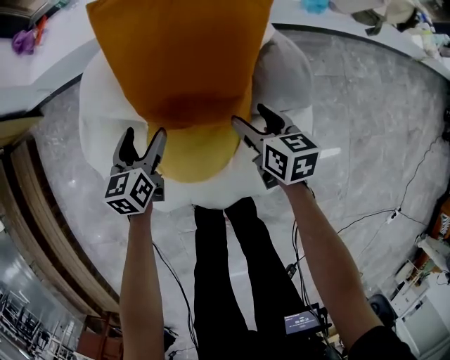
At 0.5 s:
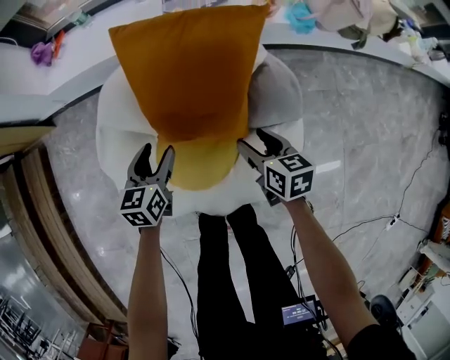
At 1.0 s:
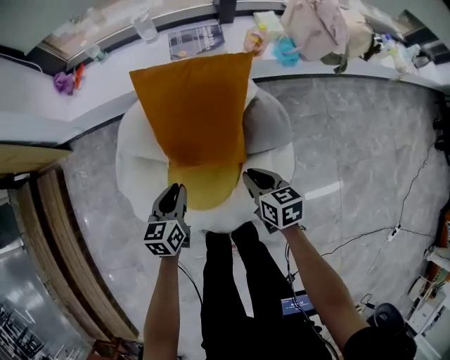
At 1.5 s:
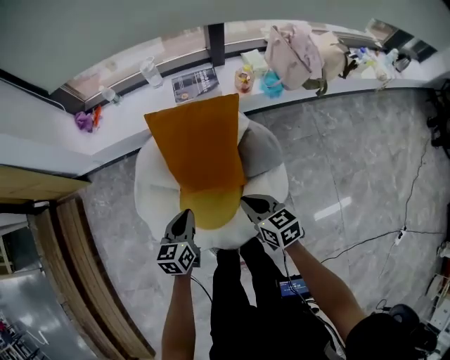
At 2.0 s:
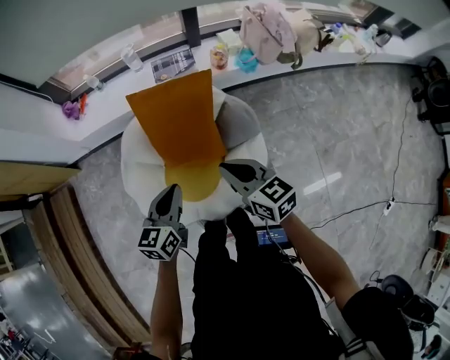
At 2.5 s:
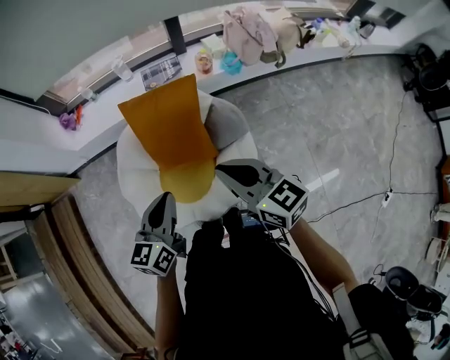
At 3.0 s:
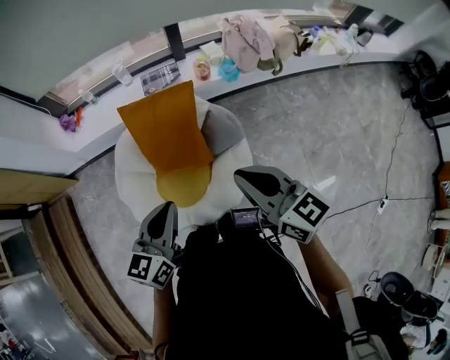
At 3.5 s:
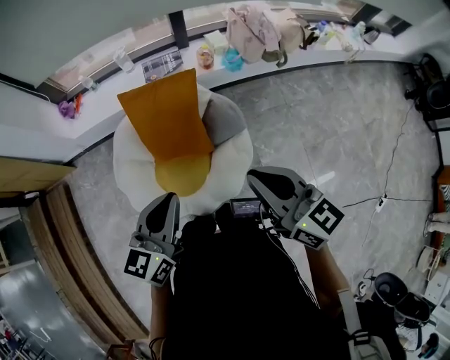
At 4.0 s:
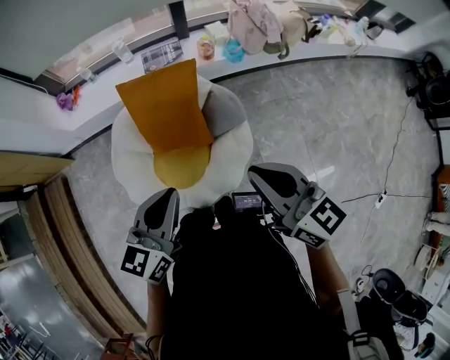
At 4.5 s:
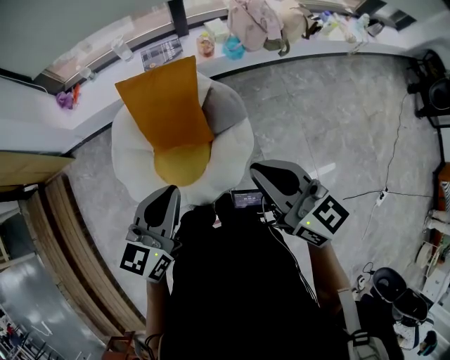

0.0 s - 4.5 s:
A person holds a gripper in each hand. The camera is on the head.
0.0 s - 2.0 s: Both grippers travel together upward, roughly 40 cm. The right gripper swivels roughly 20 degrees, and closes up, while the left gripper closes.
2.0 s - 4.5 s: The left gripper heads upward, backward and to the right, covering some 20 cm. The right gripper is displaced upward, to the right and backward by roughly 20 cm.

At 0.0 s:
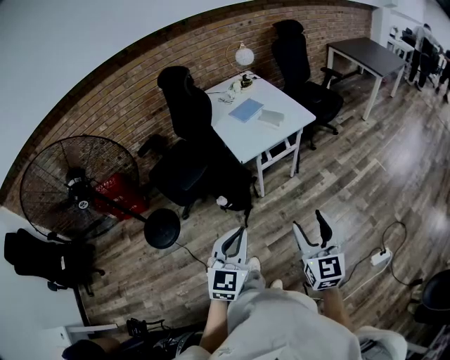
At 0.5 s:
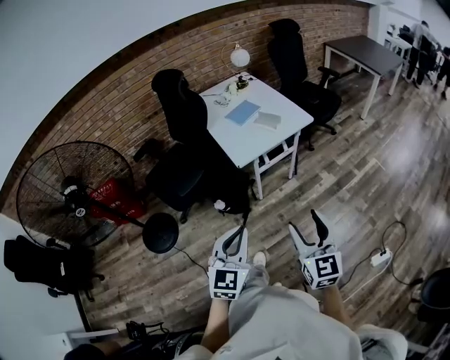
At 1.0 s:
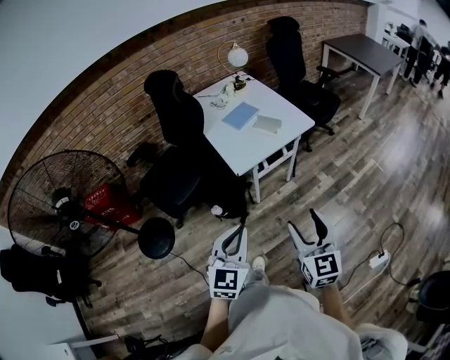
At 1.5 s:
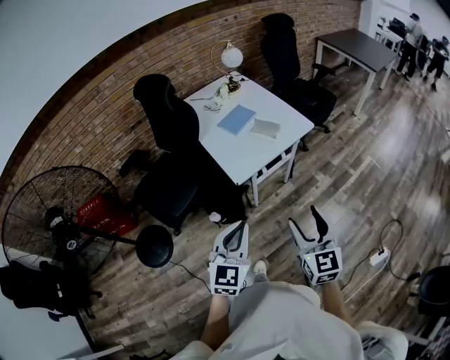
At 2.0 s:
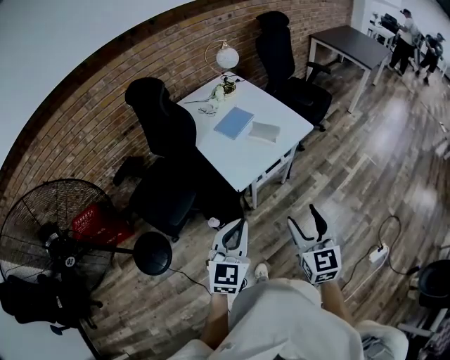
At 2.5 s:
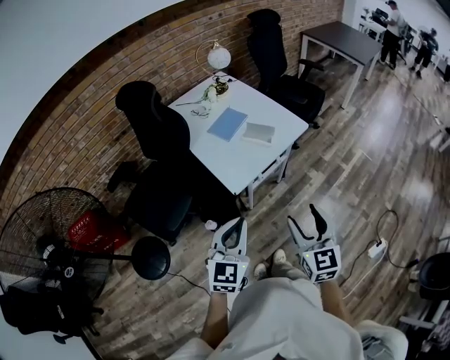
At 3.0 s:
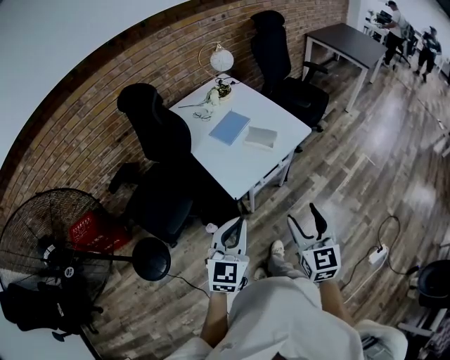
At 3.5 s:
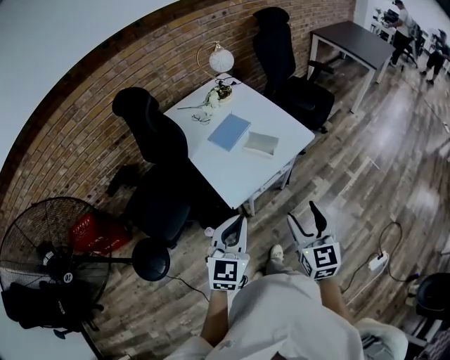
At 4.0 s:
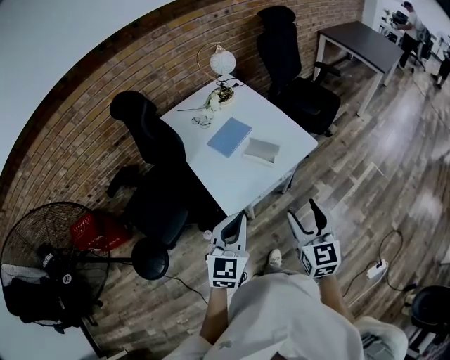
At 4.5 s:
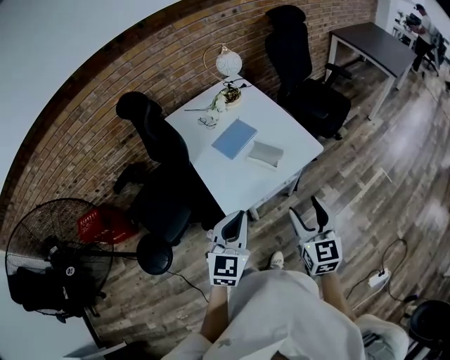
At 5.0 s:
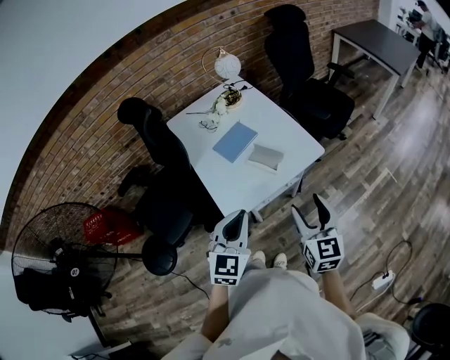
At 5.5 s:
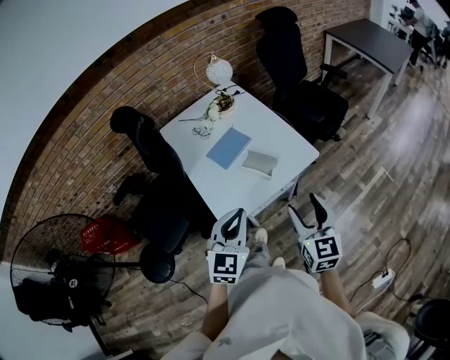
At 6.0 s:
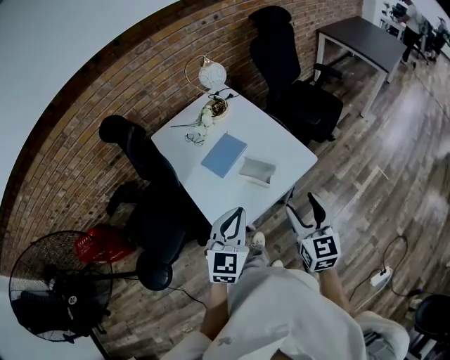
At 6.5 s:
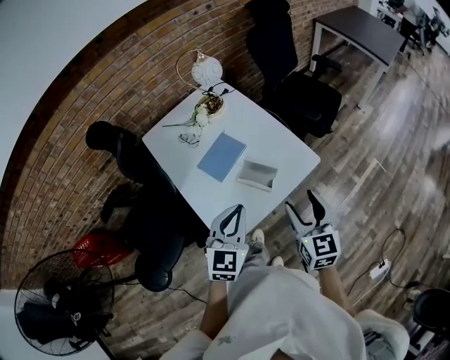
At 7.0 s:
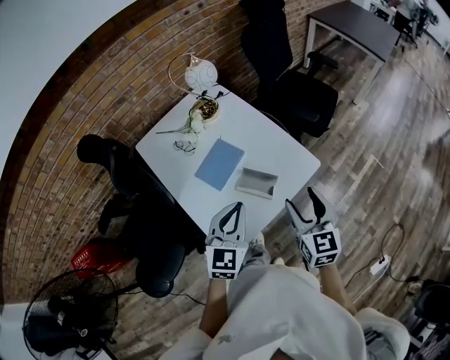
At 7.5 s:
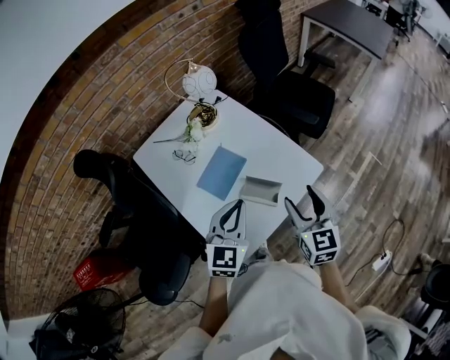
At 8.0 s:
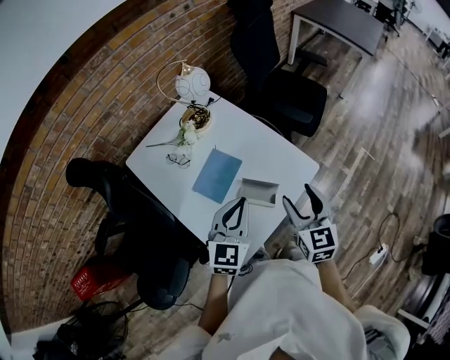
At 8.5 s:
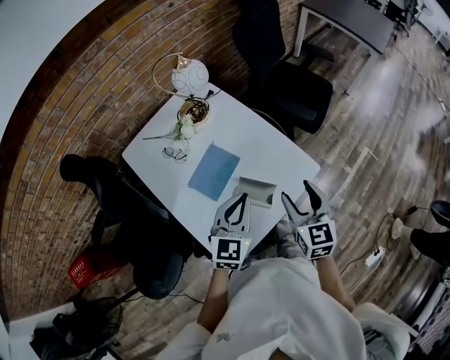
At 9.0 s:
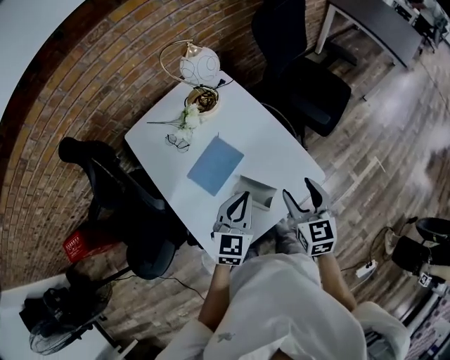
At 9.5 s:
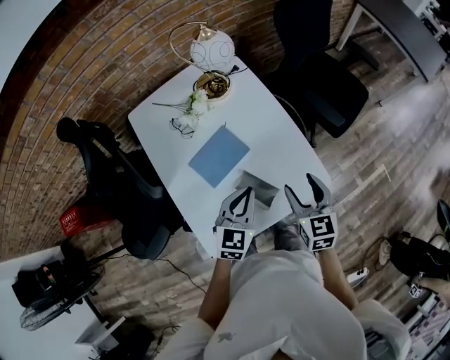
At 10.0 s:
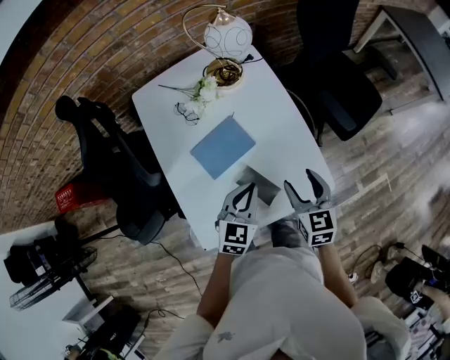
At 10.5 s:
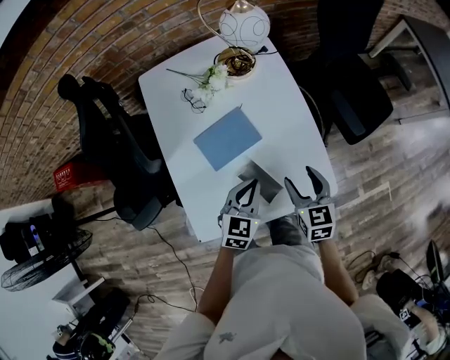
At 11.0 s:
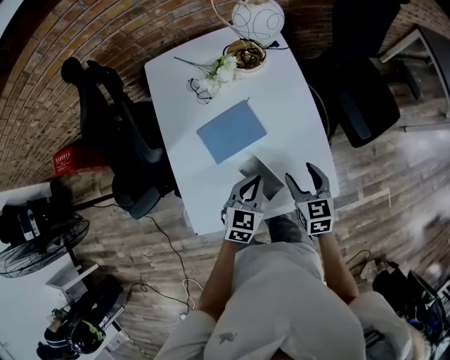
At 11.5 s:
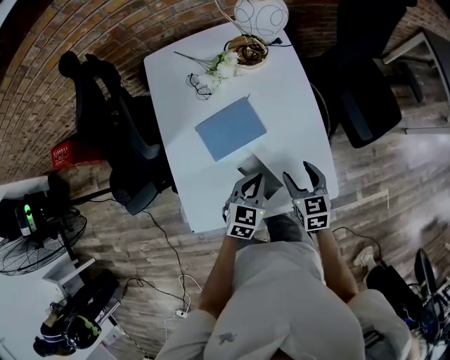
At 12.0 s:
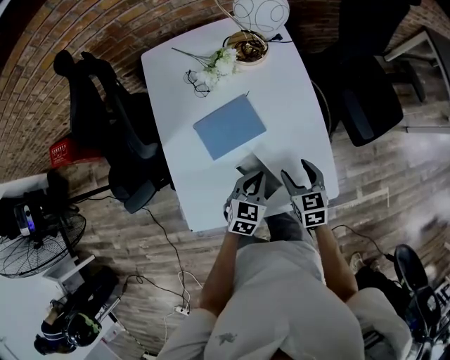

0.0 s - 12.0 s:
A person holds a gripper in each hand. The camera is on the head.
0.0 s - 2.0 s: Both grippers travel together forward, roughly 25 cm.
2.0 s - 4.0 s: The two grippers go some 15 cm forward.
4.0 s - 6.0 s: Both grippers travel together forward, about 15 cm.
6.0 s - 8.0 s: The left gripper shifts approximately 20 cm forward. Meanwhile the right gripper moves forward and to the left, roughly 15 cm.
8.0 s - 10.0 s: The grippers both shift downward and forward by roughly 15 cm. The right gripper changes its angle by roughly 30 degrees. Meanwhile the left gripper turns by roughly 20 degrees.
10.0 s - 12.0 s: Both grippers move downward, some 10 cm.

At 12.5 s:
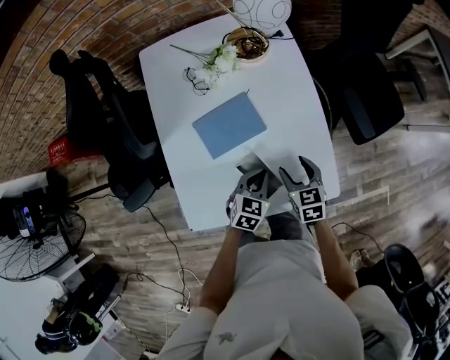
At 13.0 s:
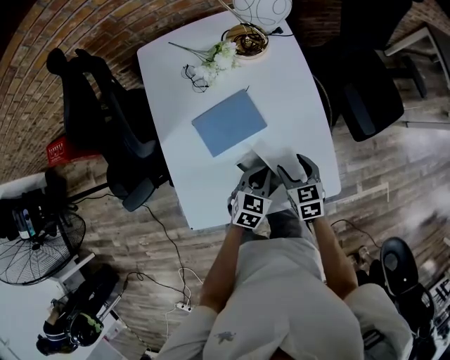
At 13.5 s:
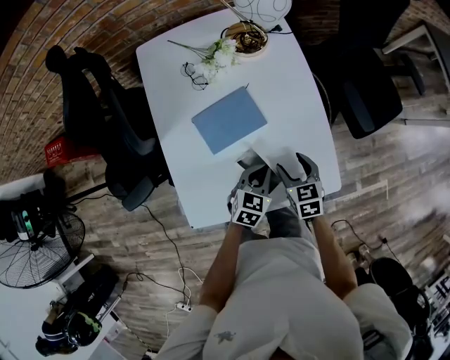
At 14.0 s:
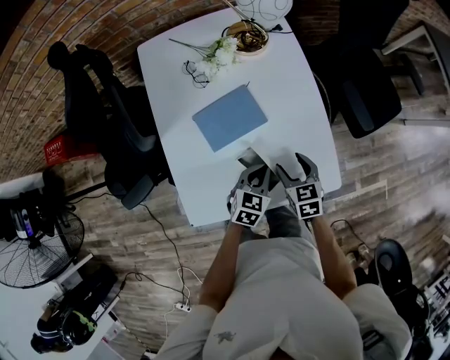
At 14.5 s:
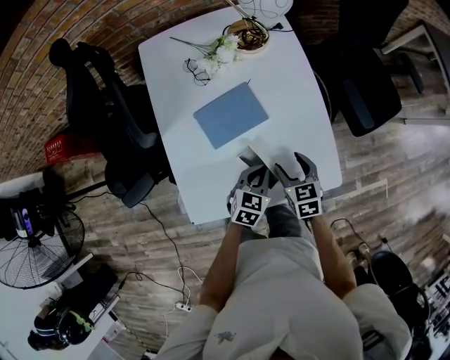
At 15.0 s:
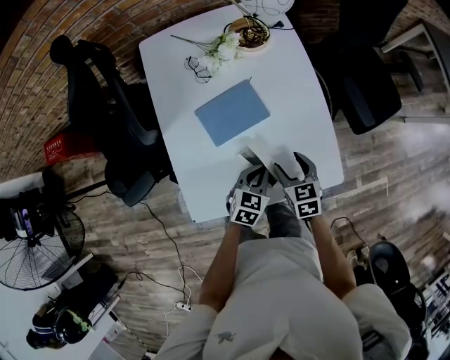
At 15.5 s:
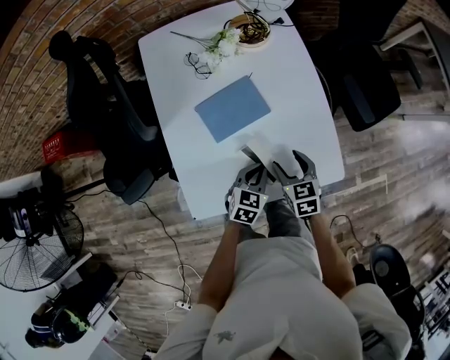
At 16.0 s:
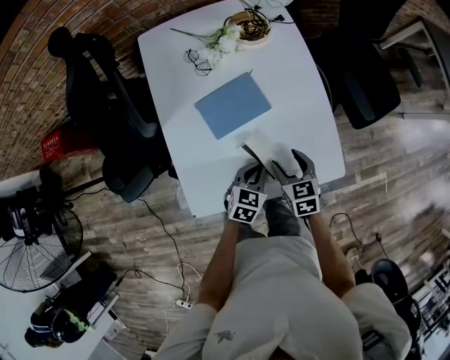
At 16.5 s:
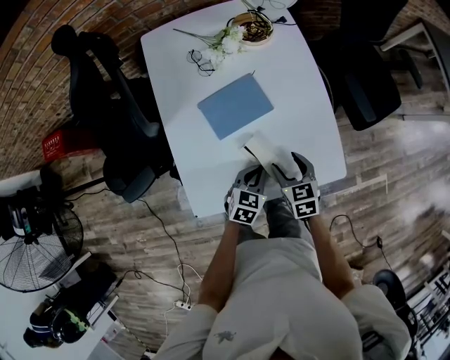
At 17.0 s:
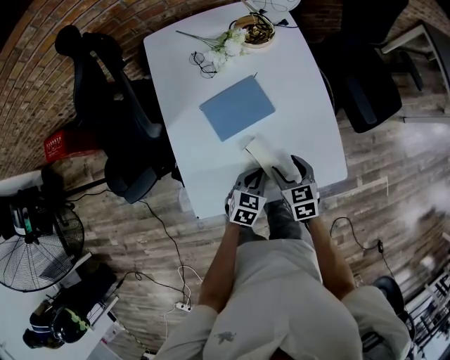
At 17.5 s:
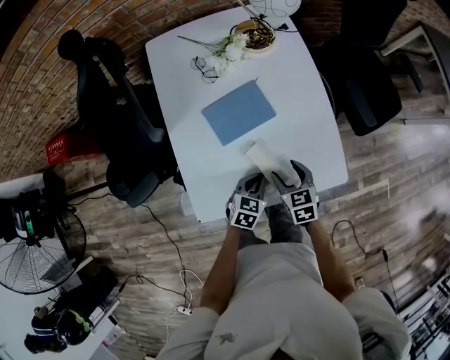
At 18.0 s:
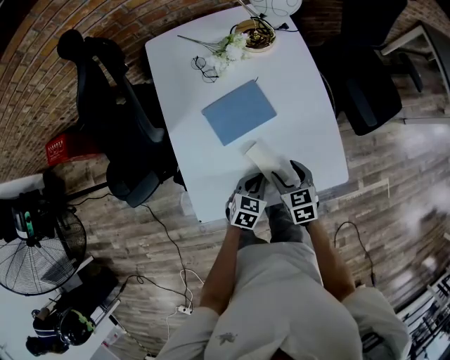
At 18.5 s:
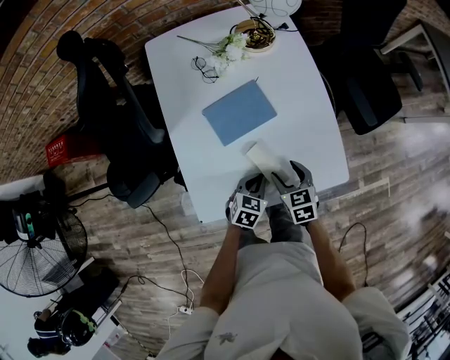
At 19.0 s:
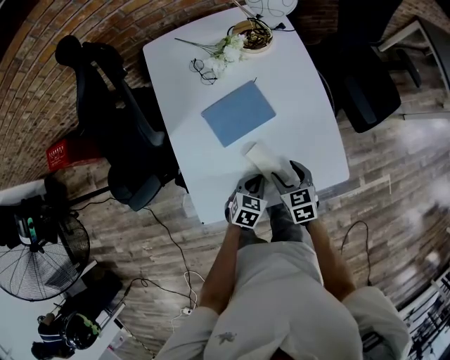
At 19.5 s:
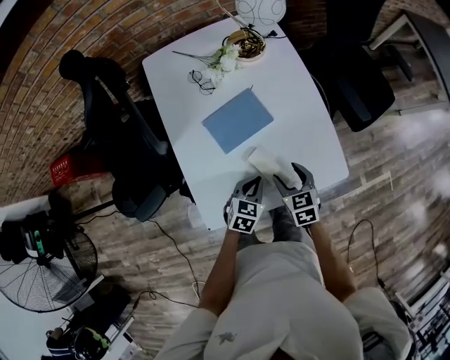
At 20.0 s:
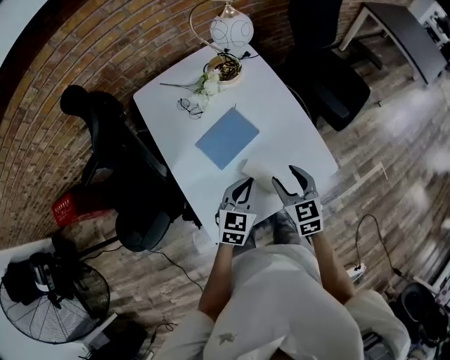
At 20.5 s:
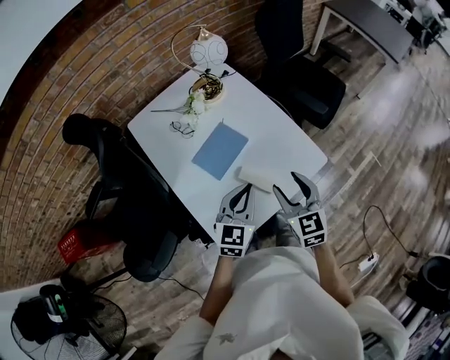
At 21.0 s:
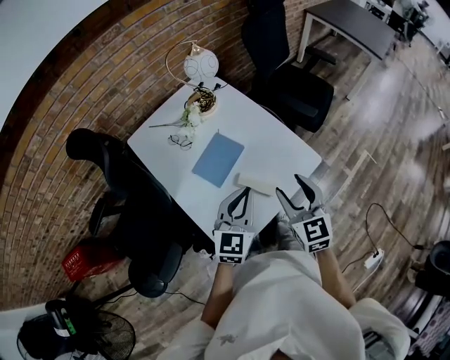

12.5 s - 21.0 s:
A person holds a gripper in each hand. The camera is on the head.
12.5 s - 14.5 s: There are only small adjustments of the grippers.
14.5 s - 16.5 s: The left gripper moves approximately 5 cm.
16.5 s - 19.0 s: The grippers make only small movements.
19.0 s - 21.0 s: The grippers both shift upward by about 25 cm. The right gripper swivels some 40 degrees. The left gripper tips its fingers upward by roughly 40 degrees.

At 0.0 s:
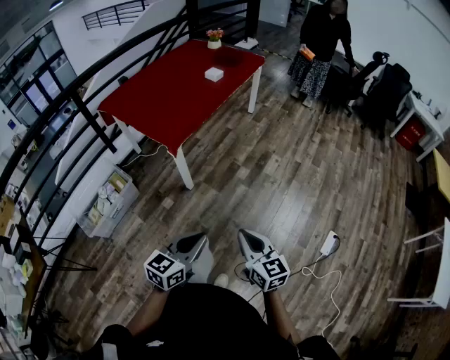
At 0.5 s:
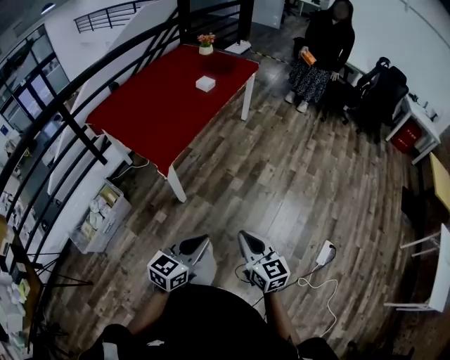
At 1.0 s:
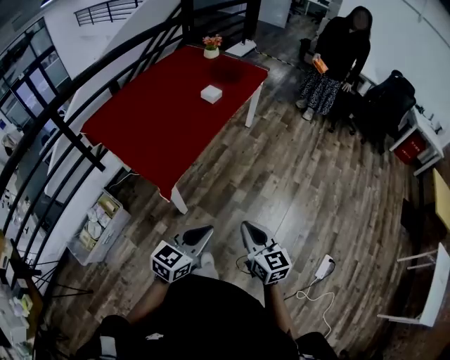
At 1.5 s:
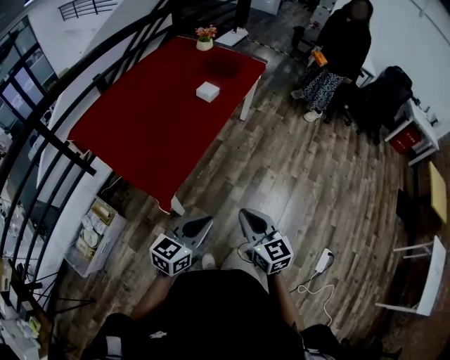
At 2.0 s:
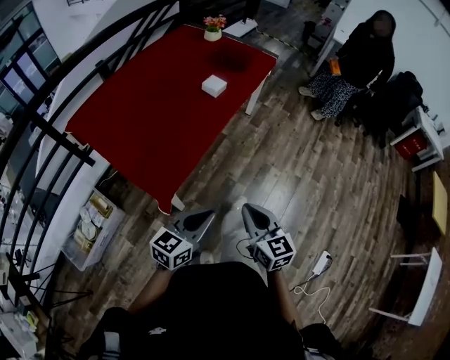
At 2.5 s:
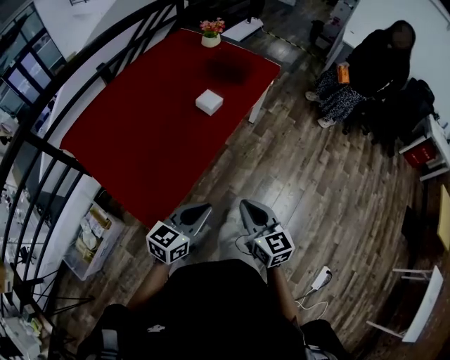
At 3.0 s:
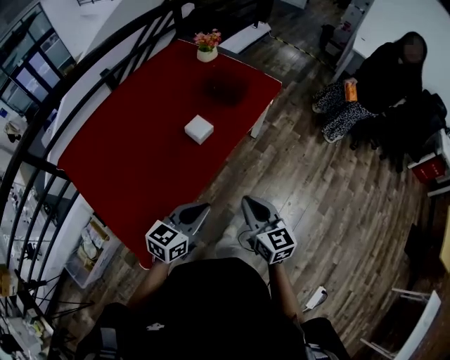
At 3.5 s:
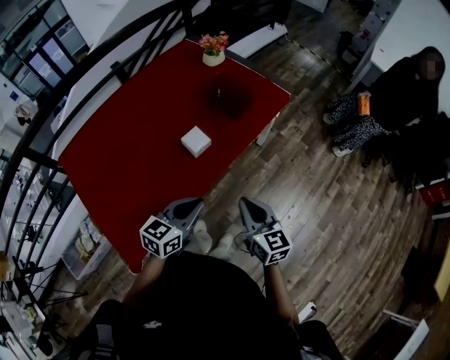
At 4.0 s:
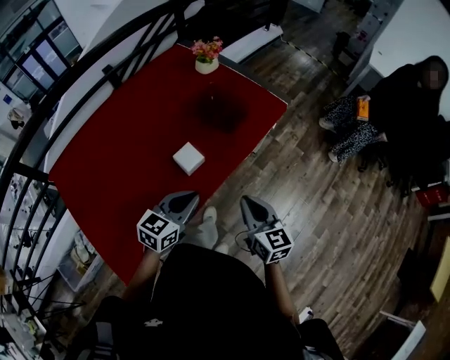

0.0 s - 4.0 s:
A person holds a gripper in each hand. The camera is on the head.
0.0 s - 2.0 s: The pair of grippers is taken forward, some 40 cm.
2.0 s - 4.0 s: The two grippers travel together, forward, approximately 50 cm.
